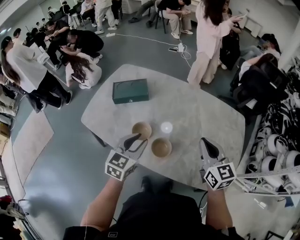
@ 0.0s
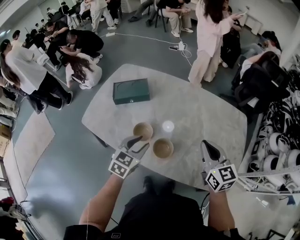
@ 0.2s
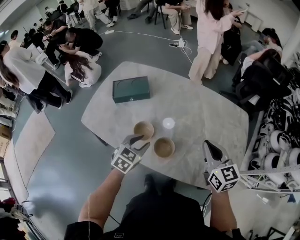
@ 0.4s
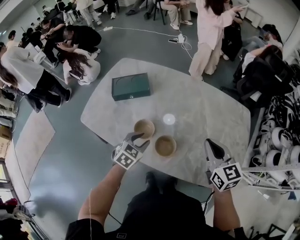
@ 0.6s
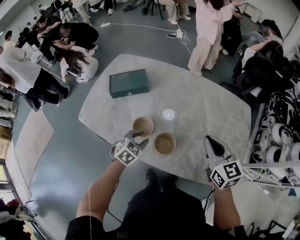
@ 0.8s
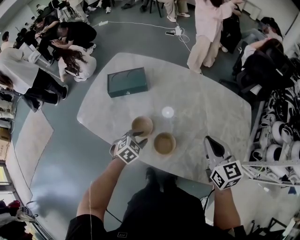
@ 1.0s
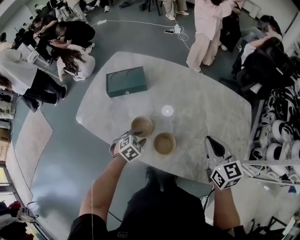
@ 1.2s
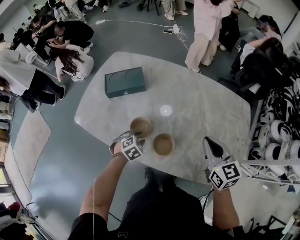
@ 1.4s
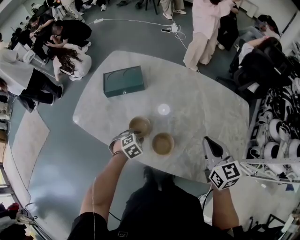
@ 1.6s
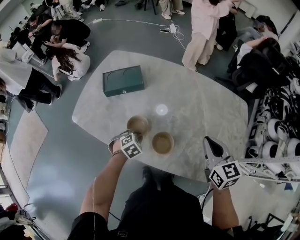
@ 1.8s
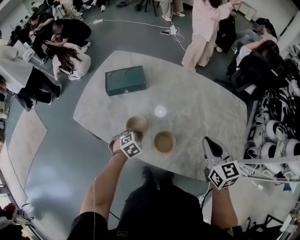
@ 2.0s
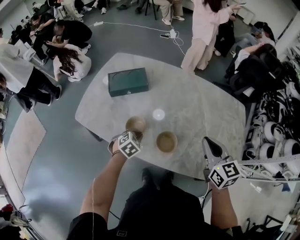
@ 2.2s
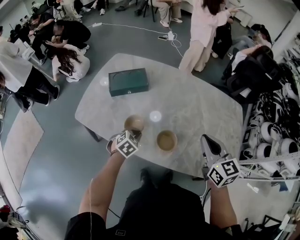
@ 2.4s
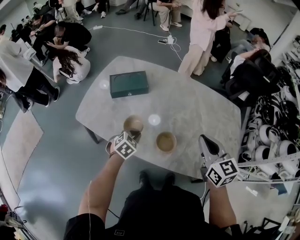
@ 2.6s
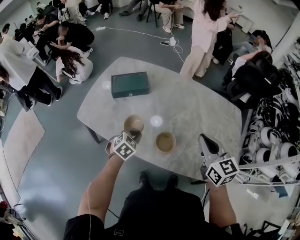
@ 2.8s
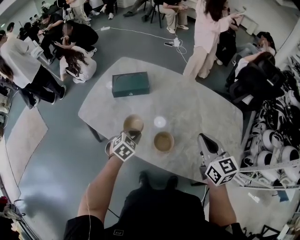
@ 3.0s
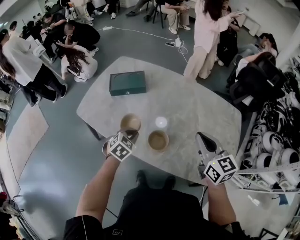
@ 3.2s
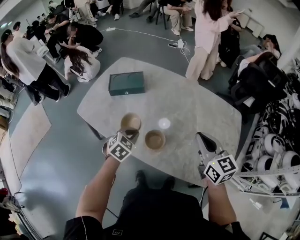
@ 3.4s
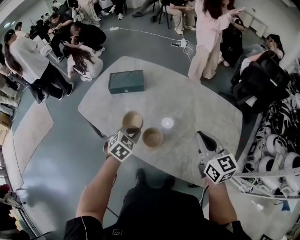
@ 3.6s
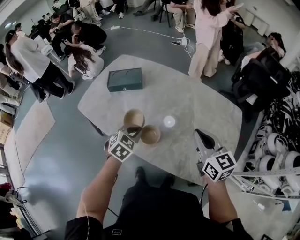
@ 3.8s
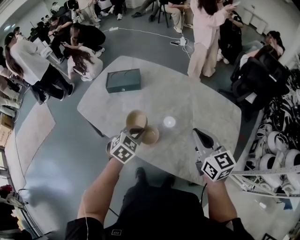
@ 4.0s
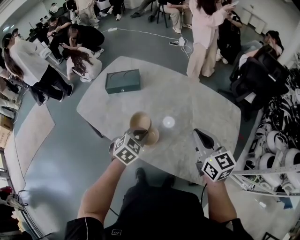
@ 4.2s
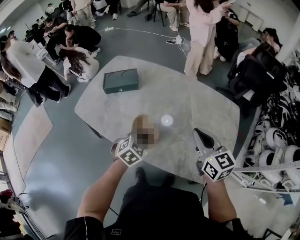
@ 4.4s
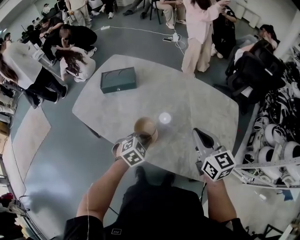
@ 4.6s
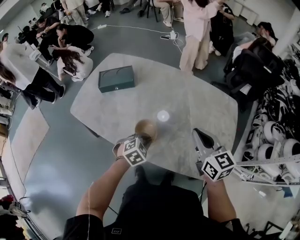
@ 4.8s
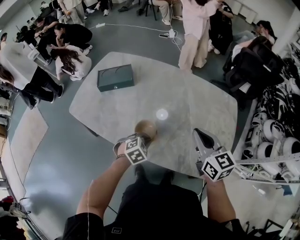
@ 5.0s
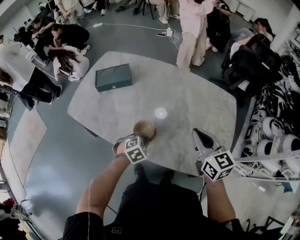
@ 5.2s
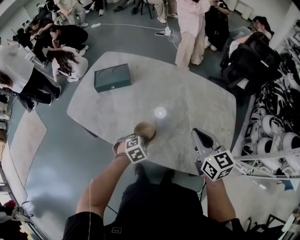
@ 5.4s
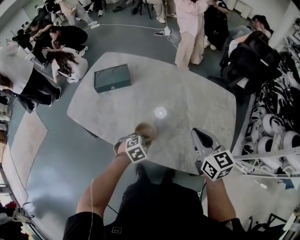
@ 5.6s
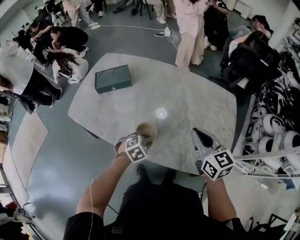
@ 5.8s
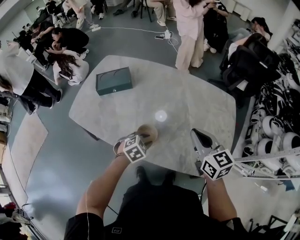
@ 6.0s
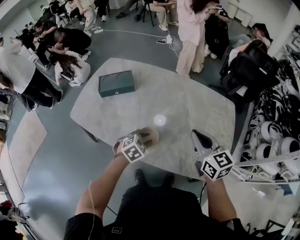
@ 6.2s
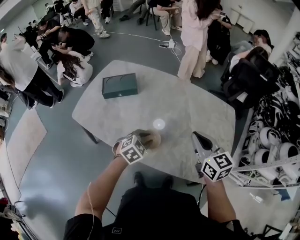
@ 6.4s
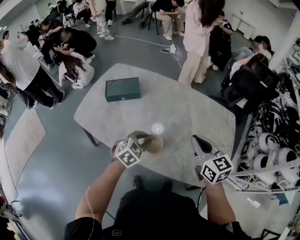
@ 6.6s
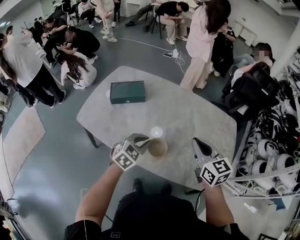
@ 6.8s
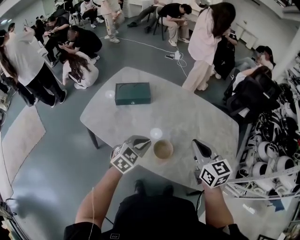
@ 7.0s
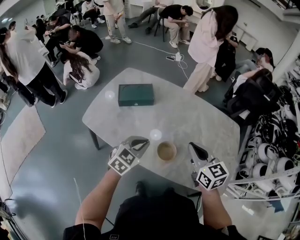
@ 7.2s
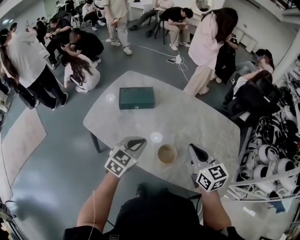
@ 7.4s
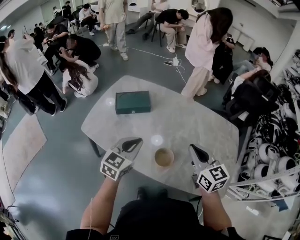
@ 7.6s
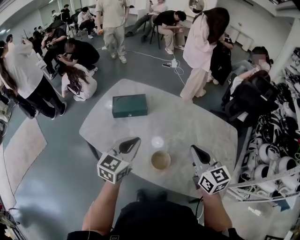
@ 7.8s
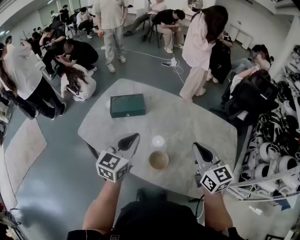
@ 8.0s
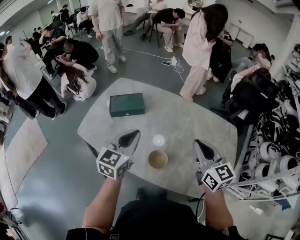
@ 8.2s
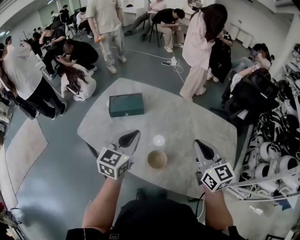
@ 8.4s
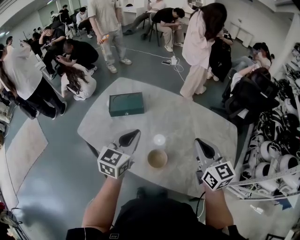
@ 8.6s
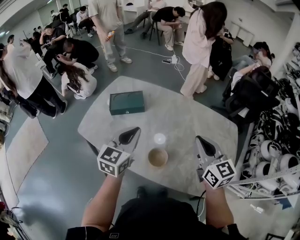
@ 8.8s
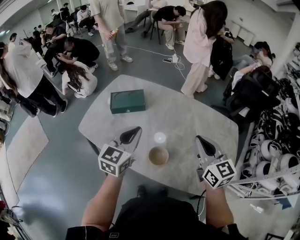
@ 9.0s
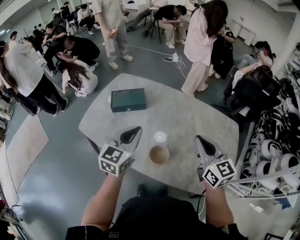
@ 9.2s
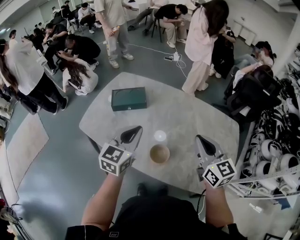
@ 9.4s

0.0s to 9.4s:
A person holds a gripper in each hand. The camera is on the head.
0.0s to 1.6s: The left gripper is displaced downward by approximately 25 cm, and points its fingers about 40 degrees further downward; the right gripper shifts some 5 cm downward.
1.6s to 3.2s: The right gripper goes about 5 cm upward. The left gripper moves upward, approximately 10 cm, turns by about 20 degrees, and closes.
3.2s to 4.8s: The right gripper travels to the right by about 5 cm. Meanwhile the left gripper is displaced to the right by roughly 15 cm.
4.8s to 6.2s: The left gripper opens.
6.2s to 7.8s: The right gripper is displaced to the left by about 10 cm; the left gripper goes roughly 25 cm upward and to the left, tilts its fingers about 40 degrees upward, and closes up.
7.8s to 9.4s: The grippers stay close to where they were, moving slightly.

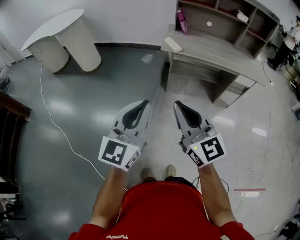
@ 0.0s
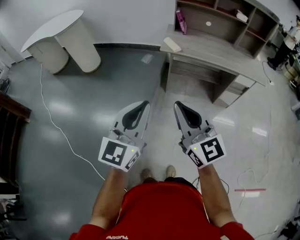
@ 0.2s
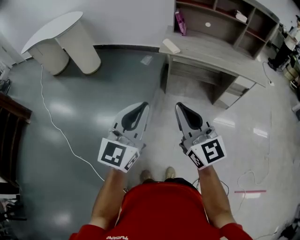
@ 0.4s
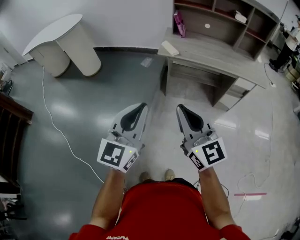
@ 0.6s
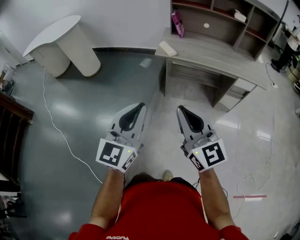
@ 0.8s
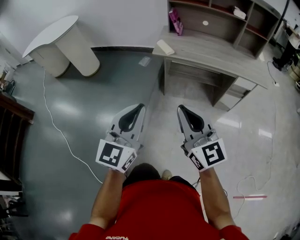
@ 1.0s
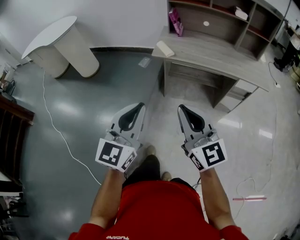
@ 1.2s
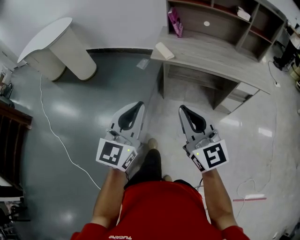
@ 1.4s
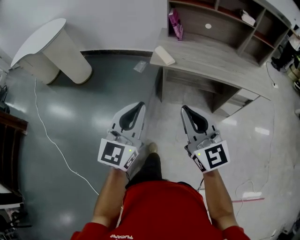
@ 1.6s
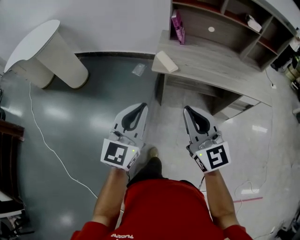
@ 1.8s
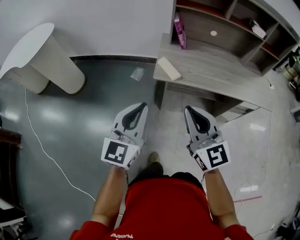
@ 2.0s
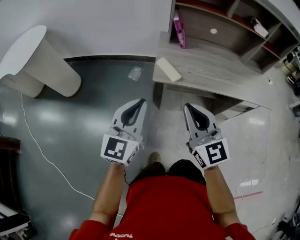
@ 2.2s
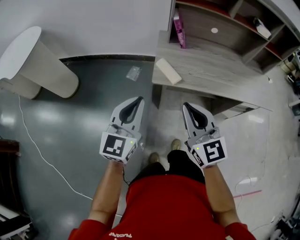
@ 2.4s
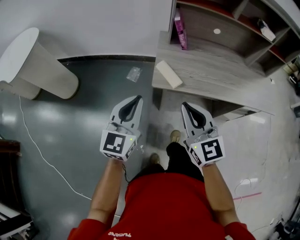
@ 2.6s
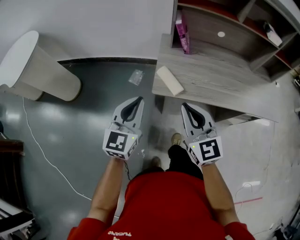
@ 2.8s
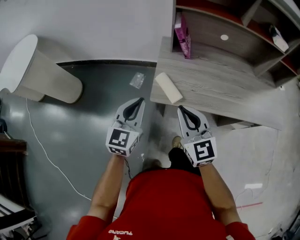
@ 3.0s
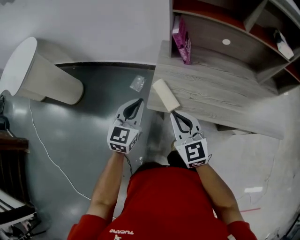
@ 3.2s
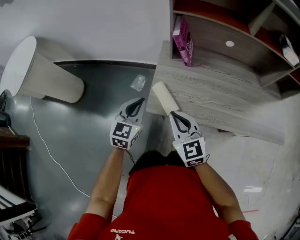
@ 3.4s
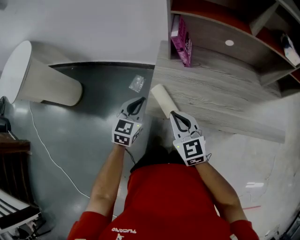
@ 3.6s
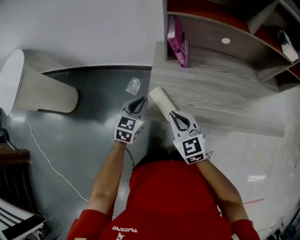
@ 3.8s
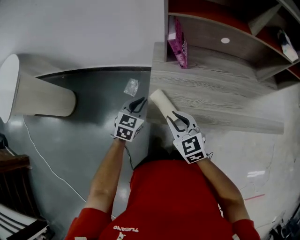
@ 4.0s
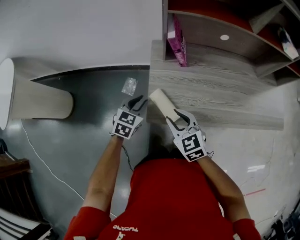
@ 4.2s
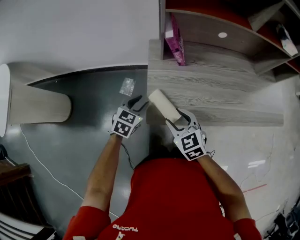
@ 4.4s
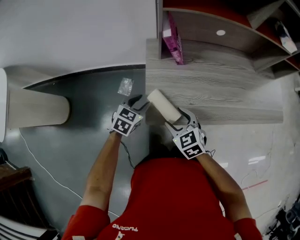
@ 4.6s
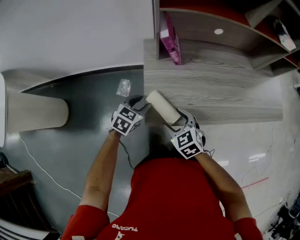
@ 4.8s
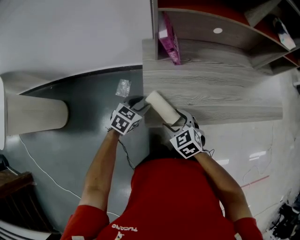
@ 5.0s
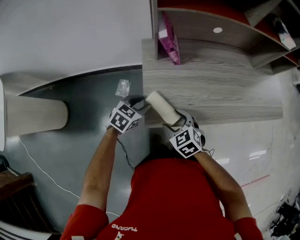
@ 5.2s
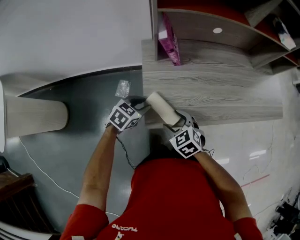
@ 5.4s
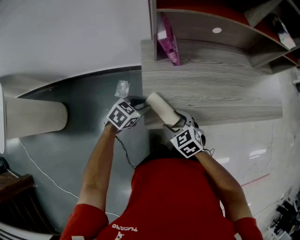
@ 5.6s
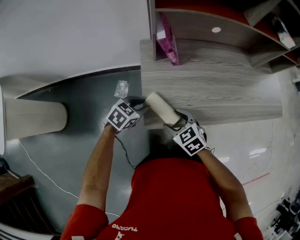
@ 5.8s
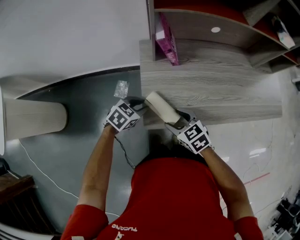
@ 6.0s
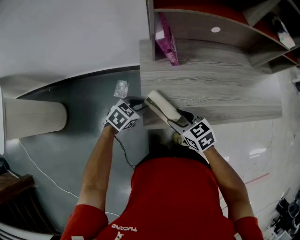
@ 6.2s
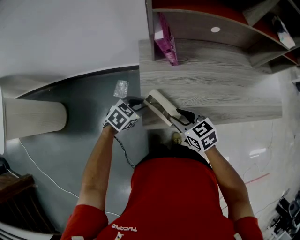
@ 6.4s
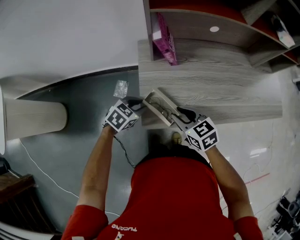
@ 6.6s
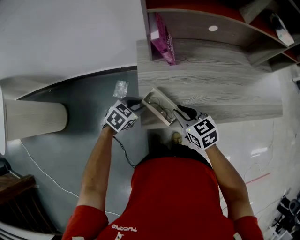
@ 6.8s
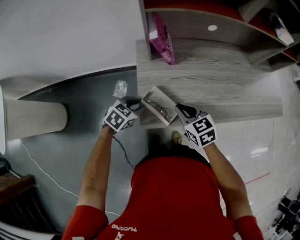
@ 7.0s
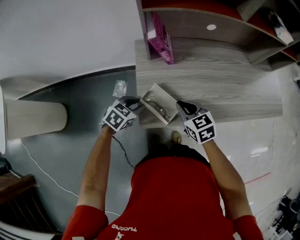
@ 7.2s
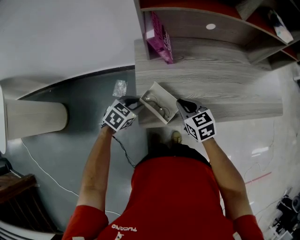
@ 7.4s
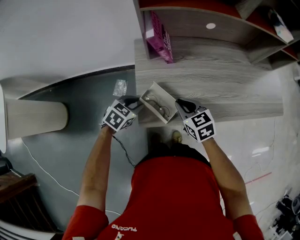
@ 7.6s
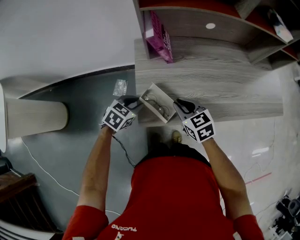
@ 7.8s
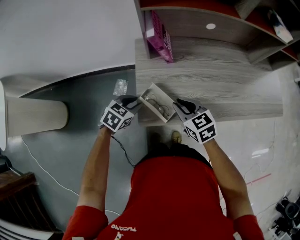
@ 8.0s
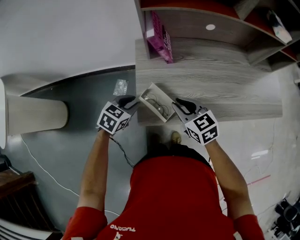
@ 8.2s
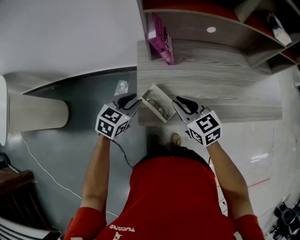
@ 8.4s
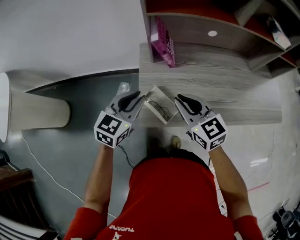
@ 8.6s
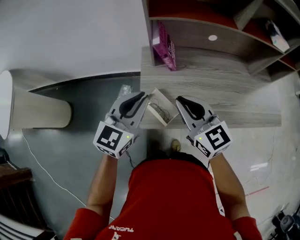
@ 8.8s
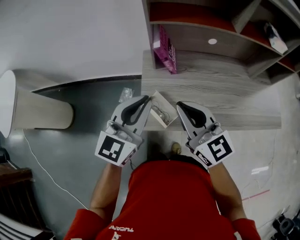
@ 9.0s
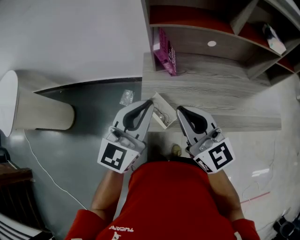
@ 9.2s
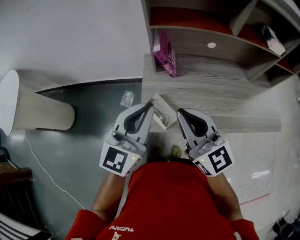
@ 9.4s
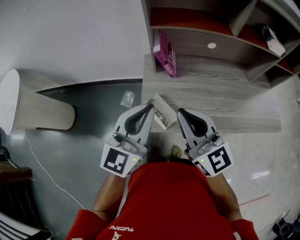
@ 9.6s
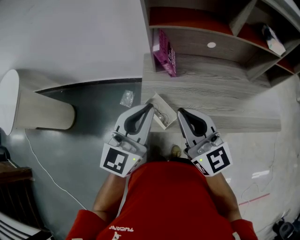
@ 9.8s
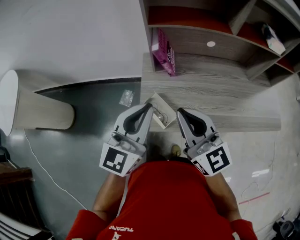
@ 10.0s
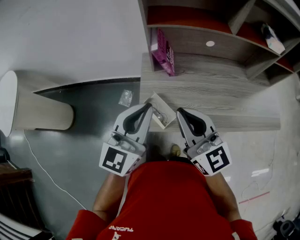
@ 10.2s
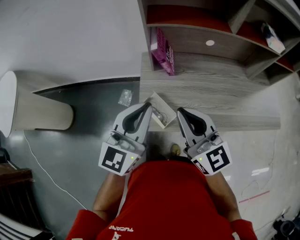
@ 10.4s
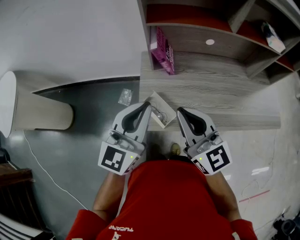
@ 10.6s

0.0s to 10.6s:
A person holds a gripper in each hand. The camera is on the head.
0.0s to 1.6s: The right gripper goes approximately 20 cm forward and to the right; the left gripper travels forward by some 20 cm.
1.6s to 3.0s: The grippers both shift forward by approximately 35 cm.
3.0s to 4.6s: Both grippers travel together downward and forward, some 20 cm. The right gripper tips its fingers downward by about 30 degrees, and opens. The left gripper angles its fingers downward, by approximately 30 degrees, and opens its fingers.
4.6s to 6.0s: The left gripper changes its angle by approximately 20 degrees.
6.0s to 7.6s: The right gripper moves forward, roughly 5 cm, and closes its fingers.
7.6s to 9.0s: Both grippers move upward, about 25 cm. The left gripper angles its fingers upward, by about 50 degrees; the right gripper angles its fingers upward, by approximately 40 degrees.
9.0s to 10.6s: The grippers move only a little.

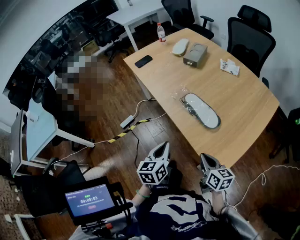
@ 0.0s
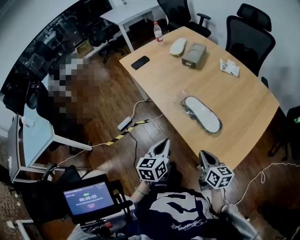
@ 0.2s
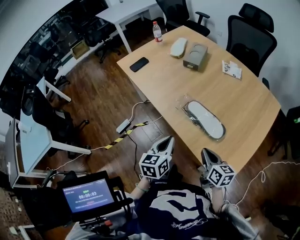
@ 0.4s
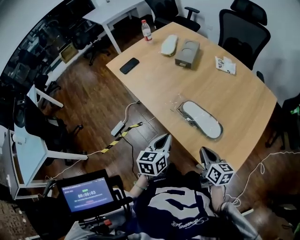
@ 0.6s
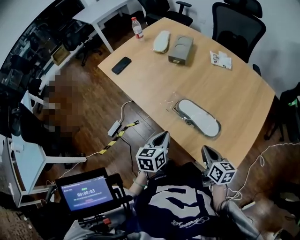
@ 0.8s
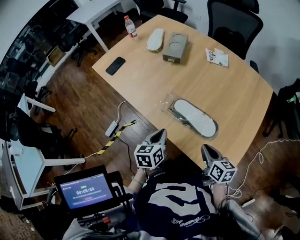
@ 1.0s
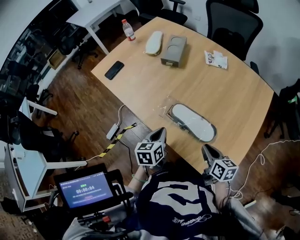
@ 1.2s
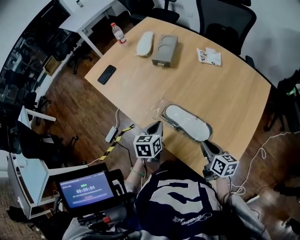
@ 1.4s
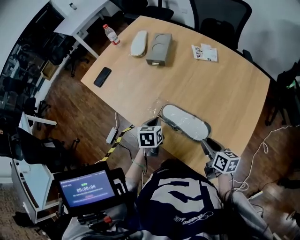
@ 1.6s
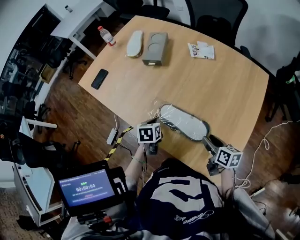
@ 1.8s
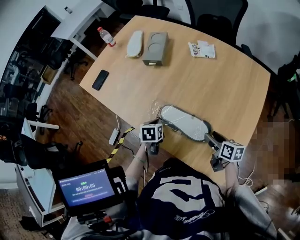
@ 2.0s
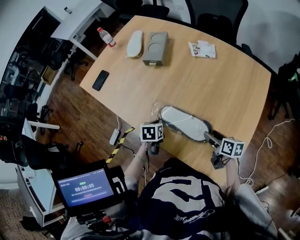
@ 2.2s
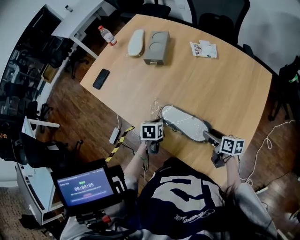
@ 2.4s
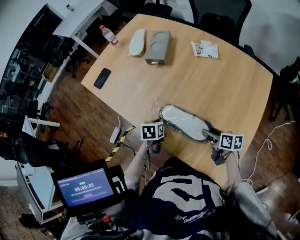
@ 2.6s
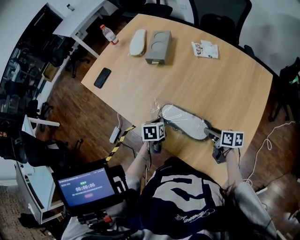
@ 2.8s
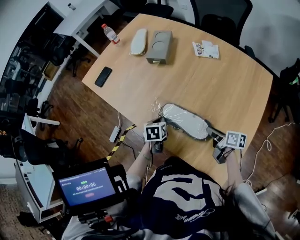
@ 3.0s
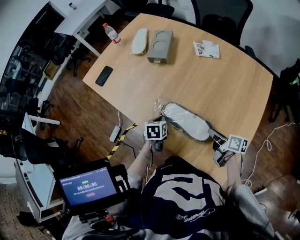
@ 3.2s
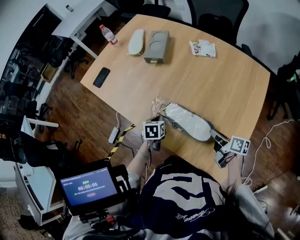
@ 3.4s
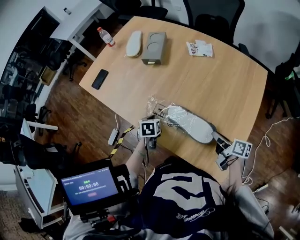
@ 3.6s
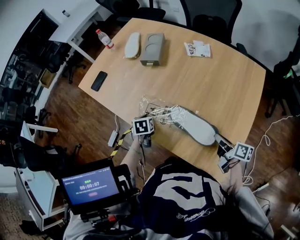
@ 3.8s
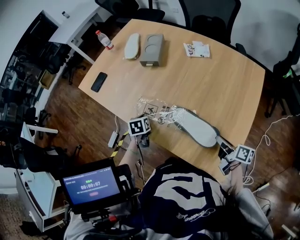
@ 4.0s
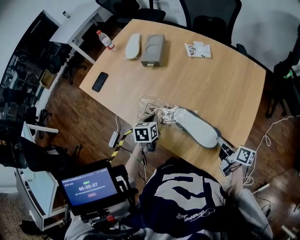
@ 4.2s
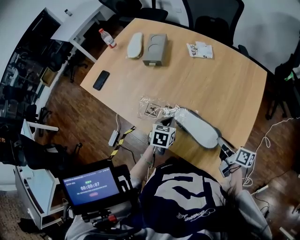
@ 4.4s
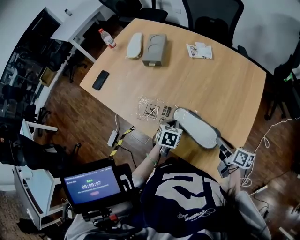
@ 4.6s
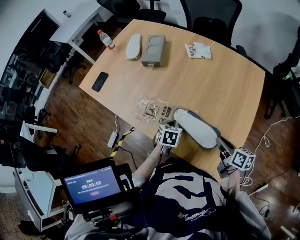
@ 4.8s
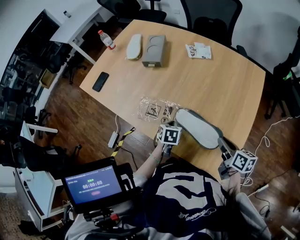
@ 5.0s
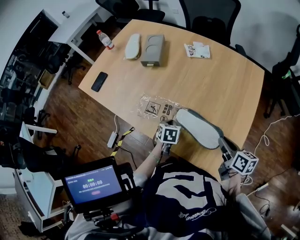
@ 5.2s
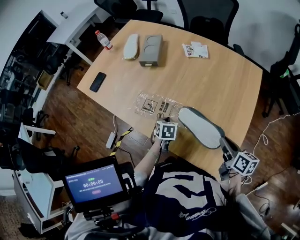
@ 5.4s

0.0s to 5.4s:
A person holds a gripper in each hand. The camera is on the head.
0.0s to 1.4s: The left gripper heads forward, covering about 25 cm, and turns by roughly 20 degrees, while the right gripper moves forward, some 20 cm.
1.4s to 2.8s: Both grippers travel together downward, some 10 cm. The right gripper opens.
2.8s to 4.0s: The left gripper shifts some 5 cm to the left, while the right gripper goes about 10 cm backward and upward, swivels some 30 degrees, and closes its fingers.
4.0s to 5.4s: The left gripper shifts approximately 15 cm to the right; the right gripper moves about 5 cm, and changes its angle by approximately 30 degrees.
